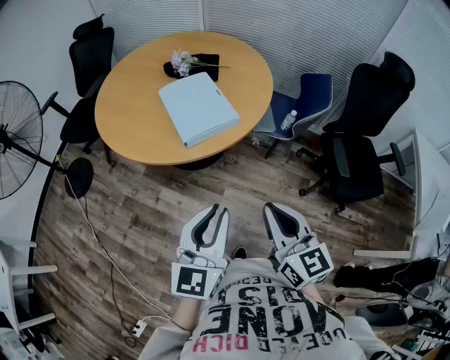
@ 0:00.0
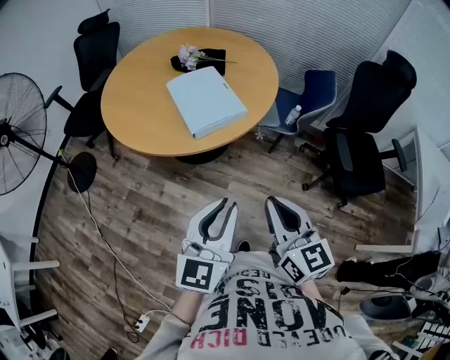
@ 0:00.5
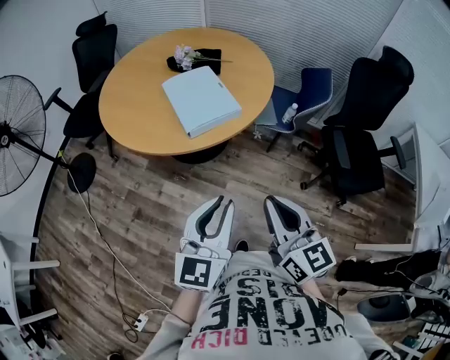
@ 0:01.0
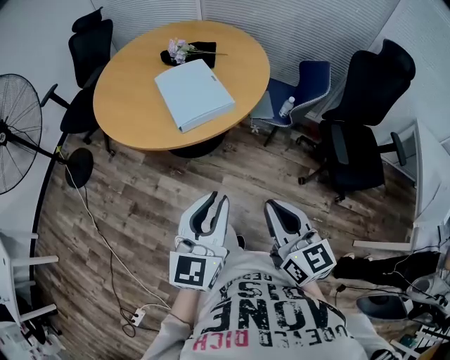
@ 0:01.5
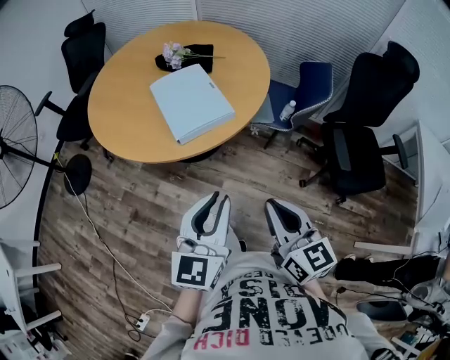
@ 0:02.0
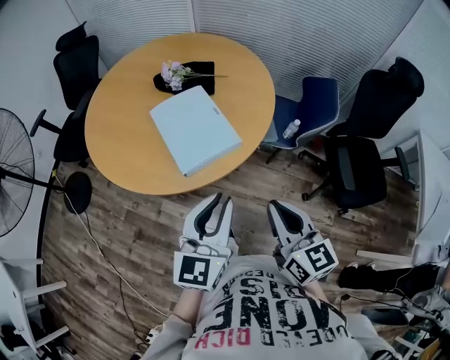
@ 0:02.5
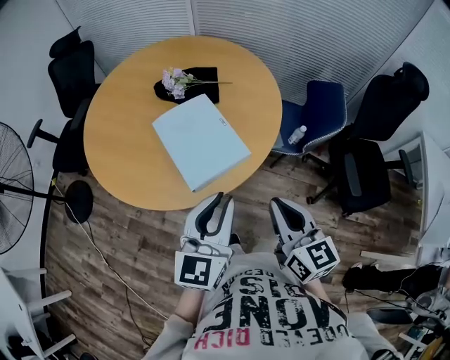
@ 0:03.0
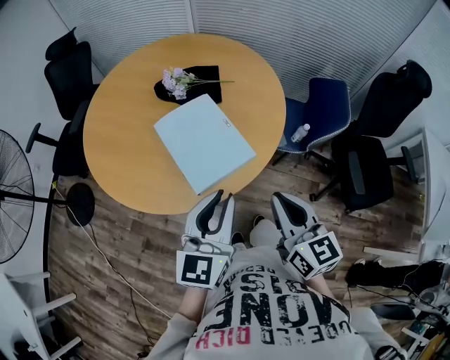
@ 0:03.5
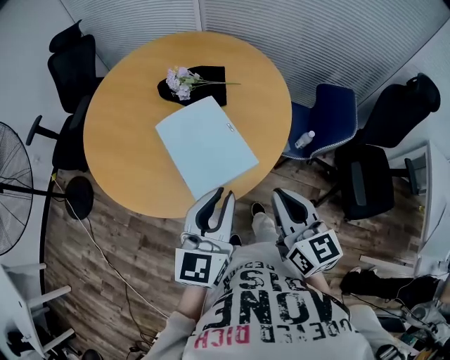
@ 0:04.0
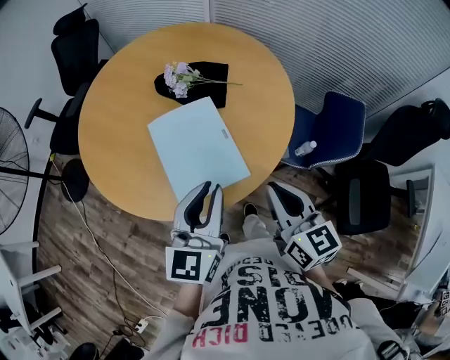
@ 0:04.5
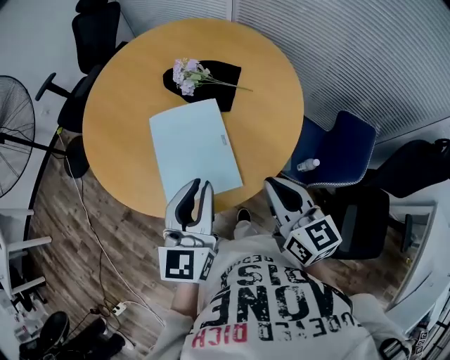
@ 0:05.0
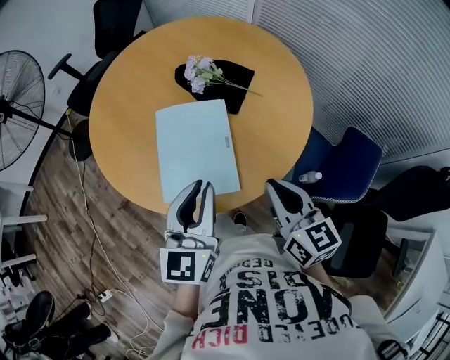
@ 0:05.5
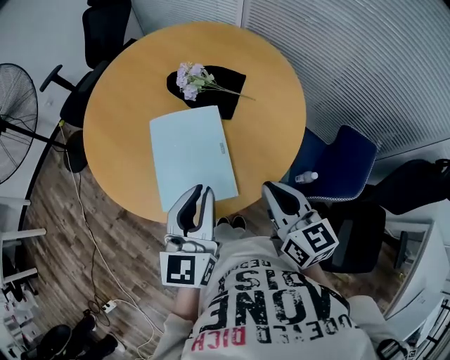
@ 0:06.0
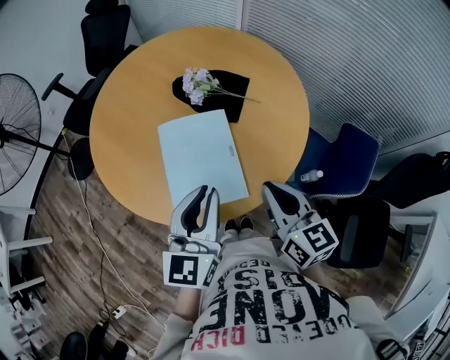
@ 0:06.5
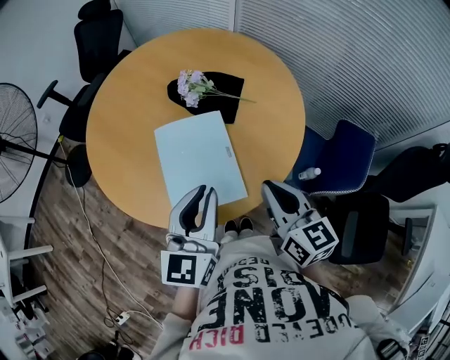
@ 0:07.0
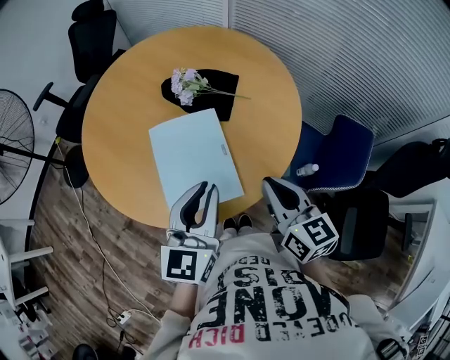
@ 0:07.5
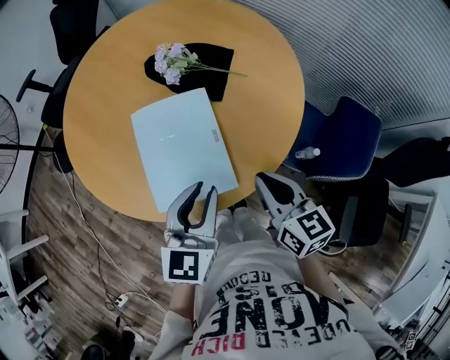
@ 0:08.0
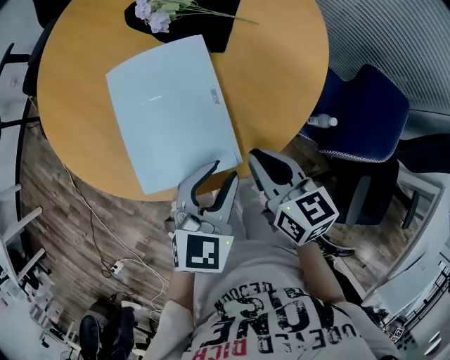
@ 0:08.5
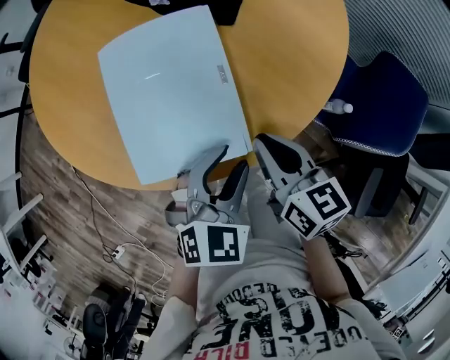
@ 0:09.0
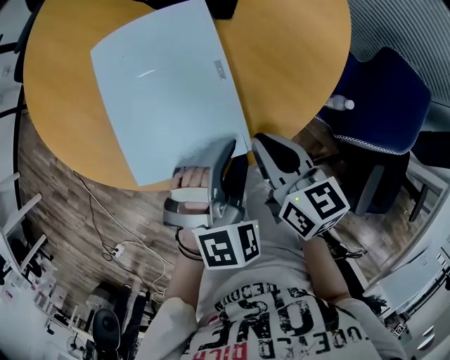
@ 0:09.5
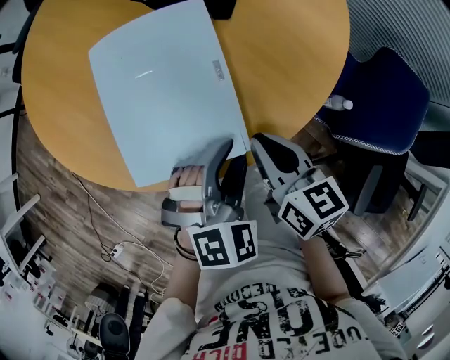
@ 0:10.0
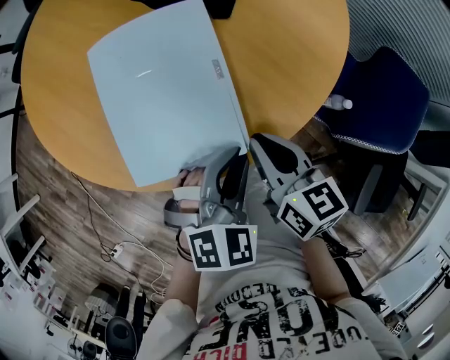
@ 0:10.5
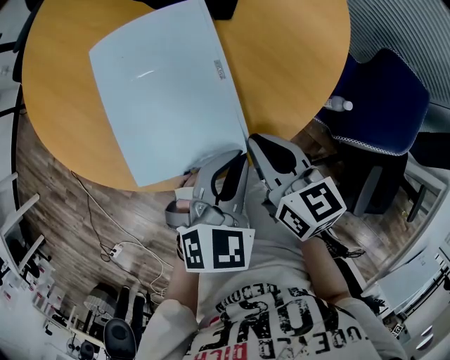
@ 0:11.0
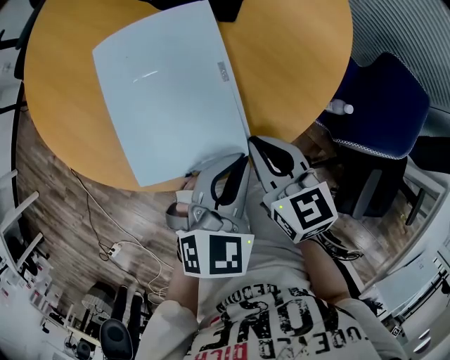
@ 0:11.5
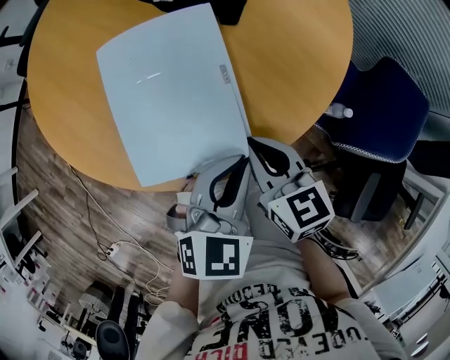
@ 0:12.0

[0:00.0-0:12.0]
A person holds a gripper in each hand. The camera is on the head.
0:00.0 to 0:02.0: The grippers stay close to where they were, moving slightly.
0:02.0 to 0:04.0: The two grippers go about 25 cm forward.
0:04.0 to 0:06.0: The left gripper moves about 10 cm, and swivels roughly 30 degrees. The right gripper changes place by some 15 cm, and changes its angle by about 20 degrees.
0:06.0 to 0:08.0: The grippers both shift downward by roughly 5 cm.
0:08.0 to 0:10.0: Both grippers move downward, some 15 cm. The left gripper points its fingers roughly 30 degrees further downward, and opens its fingers.
0:10.0 to 0:12.0: The left gripper swivels about 30 degrees, and closes.

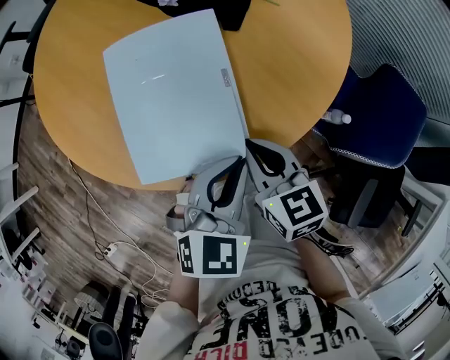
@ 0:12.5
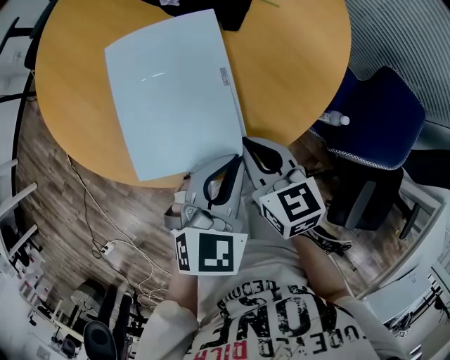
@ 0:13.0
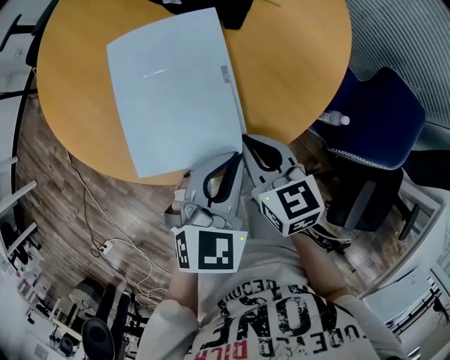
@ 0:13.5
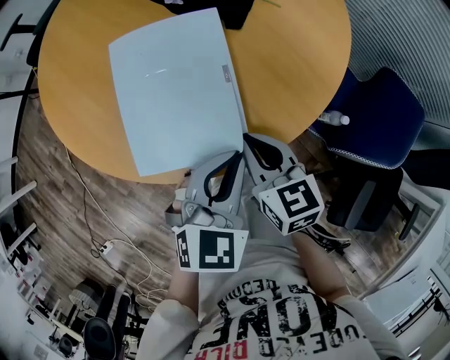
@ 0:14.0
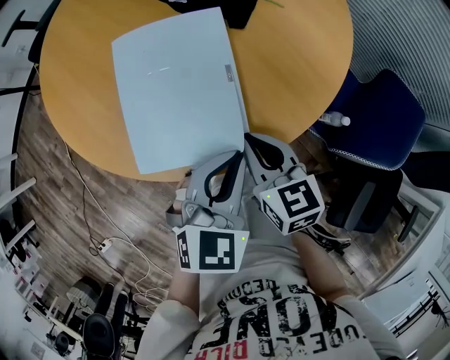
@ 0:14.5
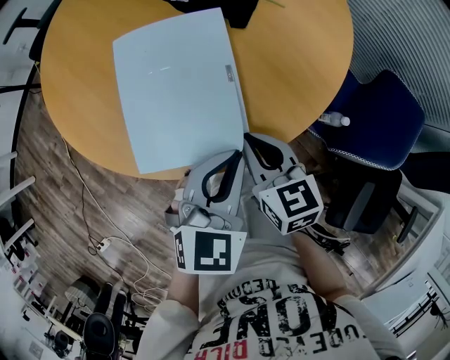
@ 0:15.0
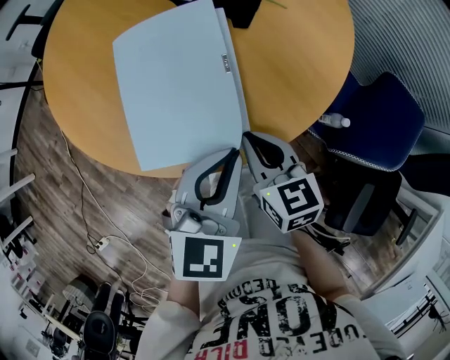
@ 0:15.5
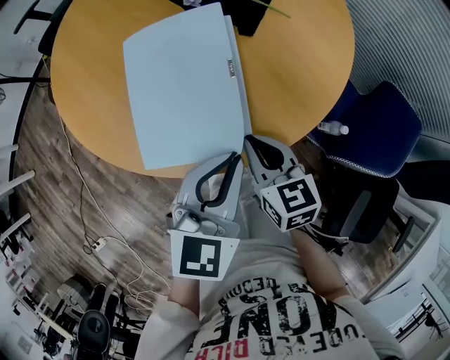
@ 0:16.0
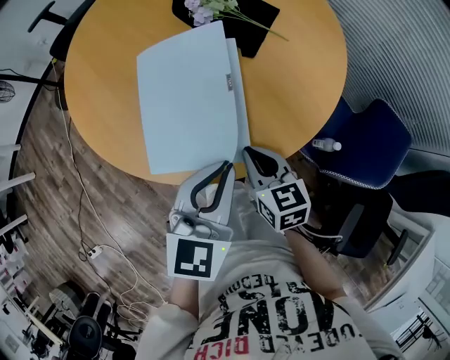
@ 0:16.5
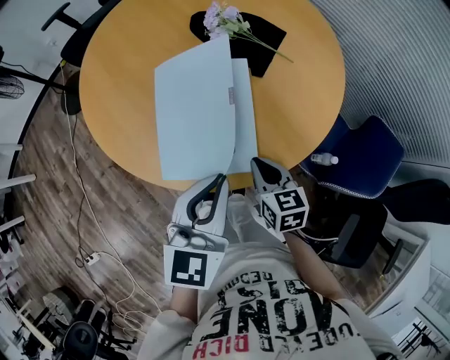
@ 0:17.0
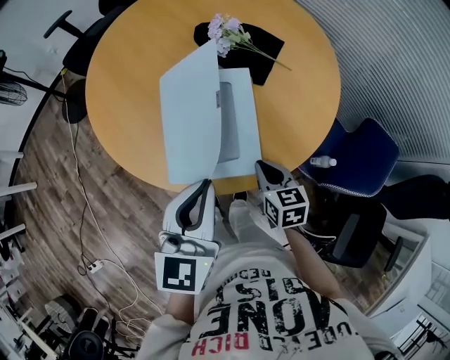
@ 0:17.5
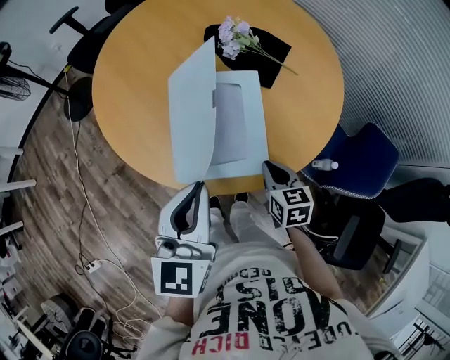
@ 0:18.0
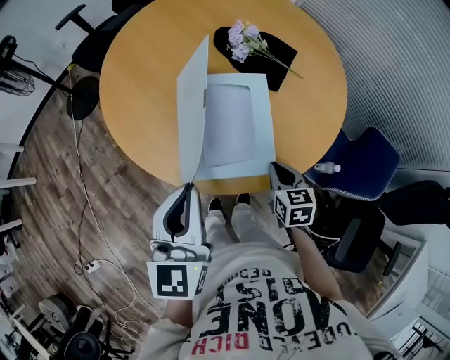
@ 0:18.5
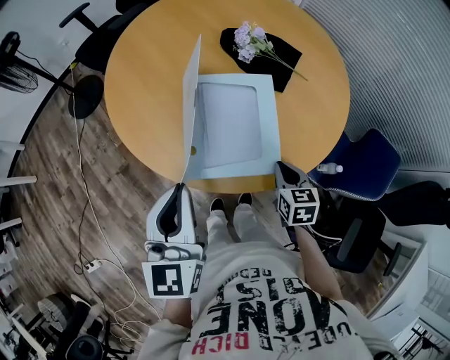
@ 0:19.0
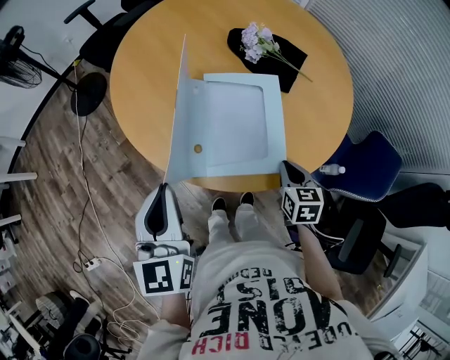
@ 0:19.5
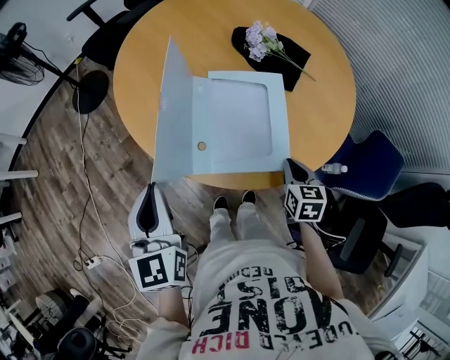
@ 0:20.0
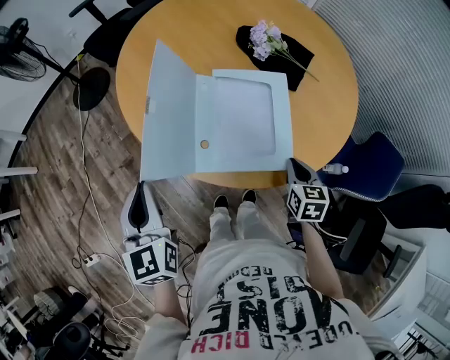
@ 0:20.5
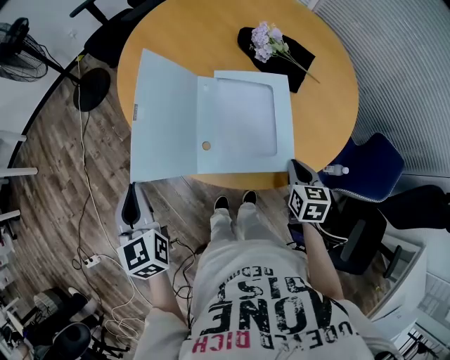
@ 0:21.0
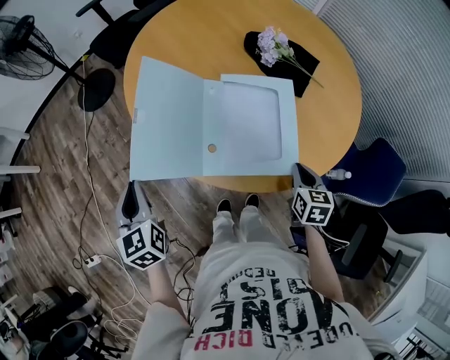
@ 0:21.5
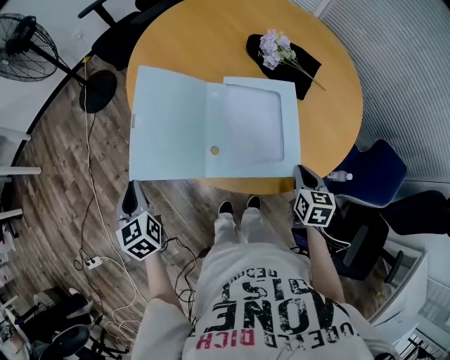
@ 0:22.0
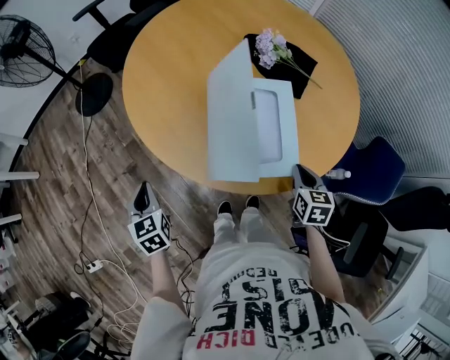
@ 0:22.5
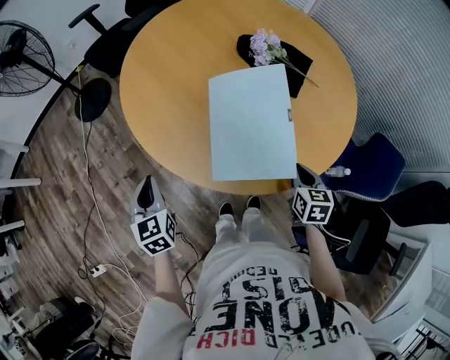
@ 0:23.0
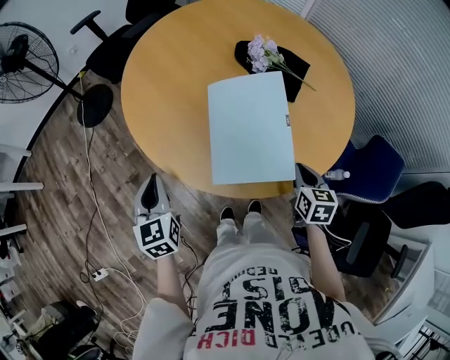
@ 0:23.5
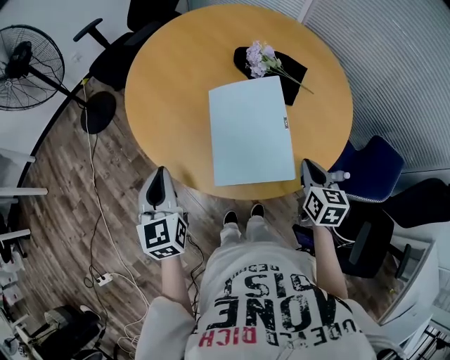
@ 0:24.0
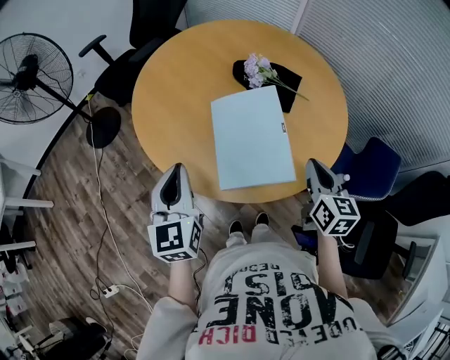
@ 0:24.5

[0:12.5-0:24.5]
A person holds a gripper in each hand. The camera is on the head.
0:12.5 to 0:14.5: The grippers make only small movements.
0:14.5 to 0:16.5: The left gripper moves upward, about 5 cm.
0:16.5 to 0:18.5: The left gripper heads to the left and upward, covering roughly 20 cm, and changes its angle by about 20 degrees.
0:18.5 to 0:20.5: The left gripper moves to the left, approximately 15 cm, and changes its angle by approximately 20 degrees.
0:20.5 to 0:22.5: The left gripper travels downward and to the left by approximately 15 cm.
0:22.5 to 0:24.5: The left gripper heads upward and to the right, covering about 25 cm, and rotates some 30 degrees; the right gripper heads upward, covering some 15 cm, and changes its angle by some 20 degrees.

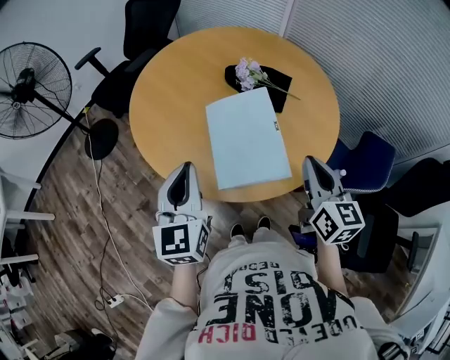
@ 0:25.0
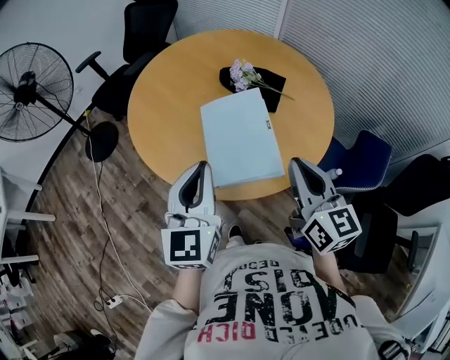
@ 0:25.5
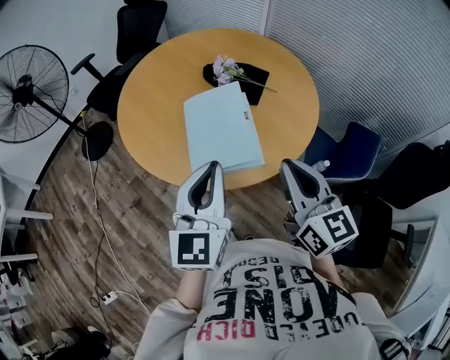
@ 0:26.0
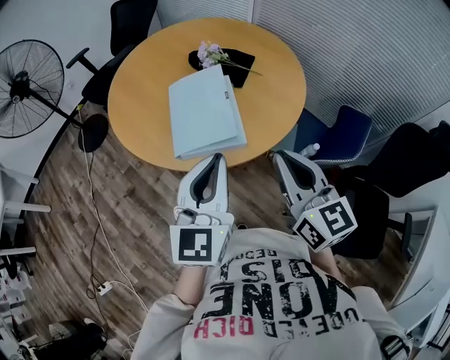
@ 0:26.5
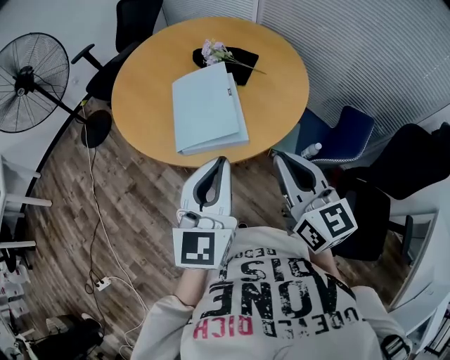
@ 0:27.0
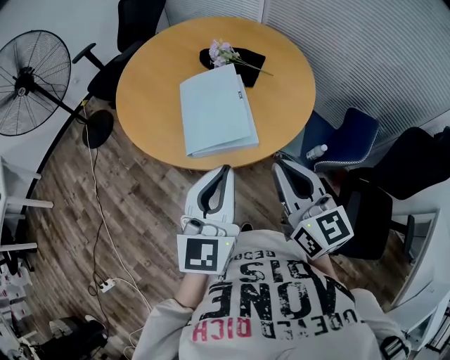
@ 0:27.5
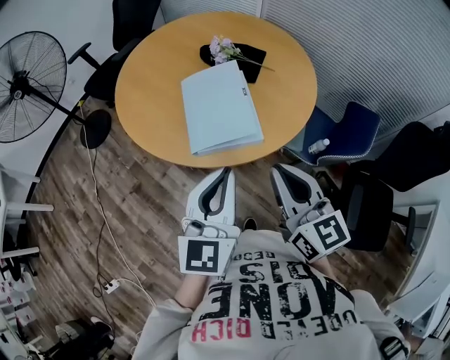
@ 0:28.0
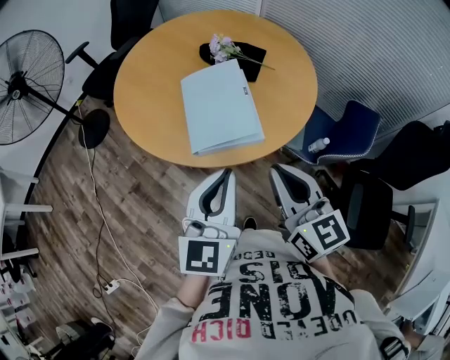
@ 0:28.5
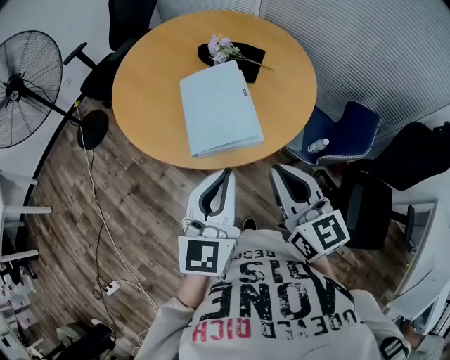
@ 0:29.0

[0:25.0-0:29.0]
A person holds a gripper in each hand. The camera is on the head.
0:25.0 to 0:27.0: The left gripper goes roughly 25 cm to the right and backward. The right gripper travels backward by roughly 15 cm.
0:27.0 to 0:29.0: Both grippers travel together to the left, roughly 5 cm.
